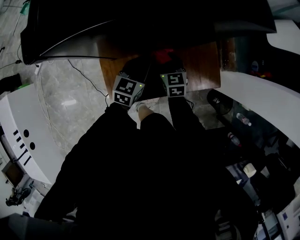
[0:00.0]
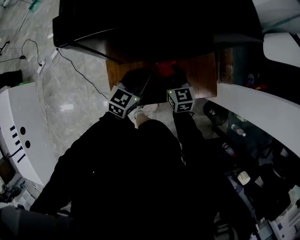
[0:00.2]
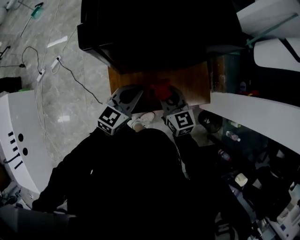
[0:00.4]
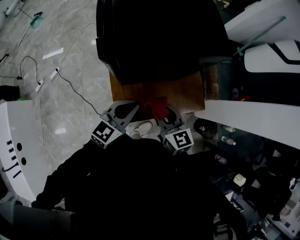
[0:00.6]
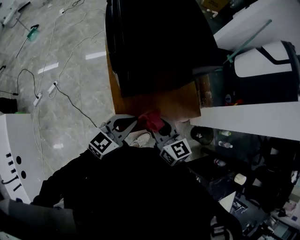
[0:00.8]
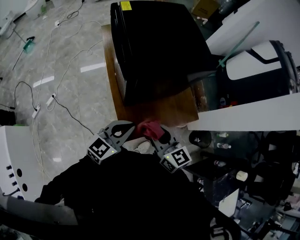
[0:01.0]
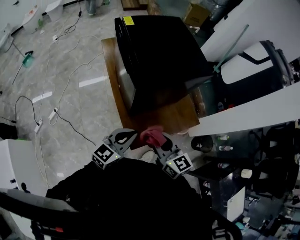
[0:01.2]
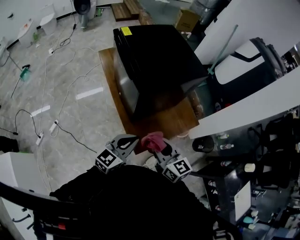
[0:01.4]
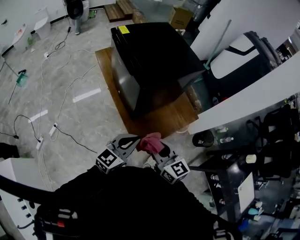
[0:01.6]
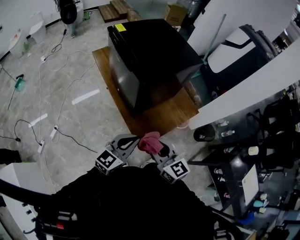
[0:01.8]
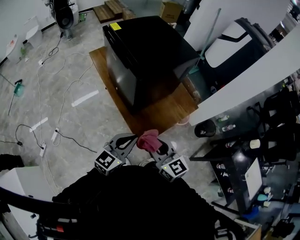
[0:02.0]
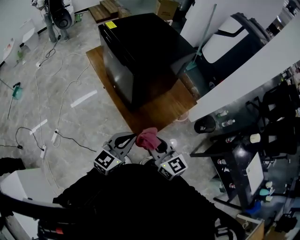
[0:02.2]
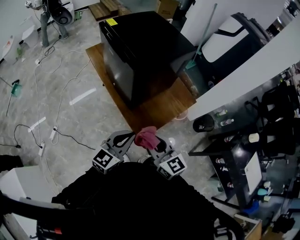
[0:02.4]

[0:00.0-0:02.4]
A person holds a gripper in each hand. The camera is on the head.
0:00.0 to 0:01.2: Both grippers move upward, backward and to the left, about 40 cm. The left gripper turns by approximately 30 degrees. The right gripper turns by about 20 degrees.
0:01.2 to 0:02.4: Both grippers travel together backward, approximately 10 cm.

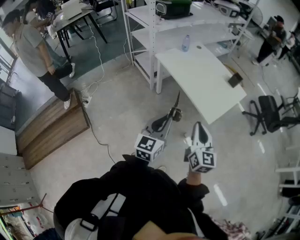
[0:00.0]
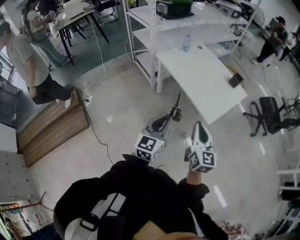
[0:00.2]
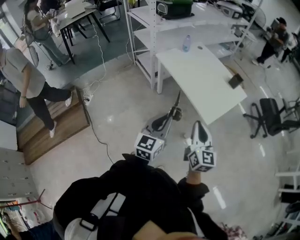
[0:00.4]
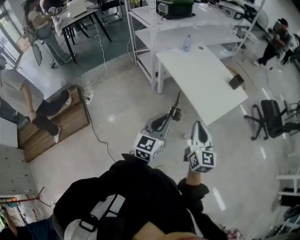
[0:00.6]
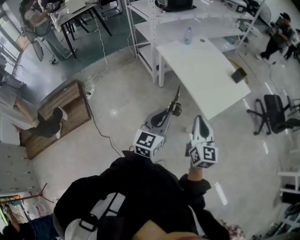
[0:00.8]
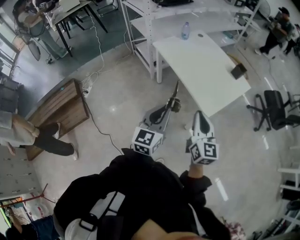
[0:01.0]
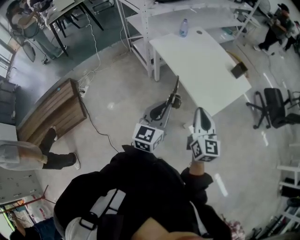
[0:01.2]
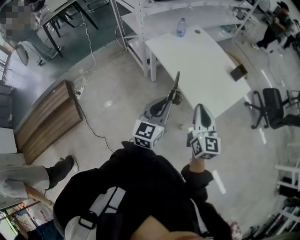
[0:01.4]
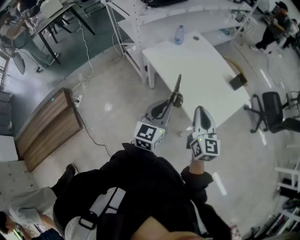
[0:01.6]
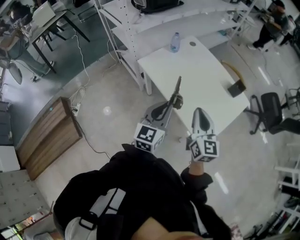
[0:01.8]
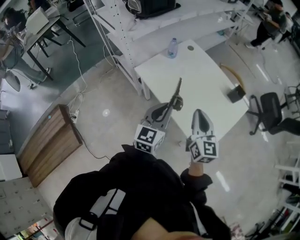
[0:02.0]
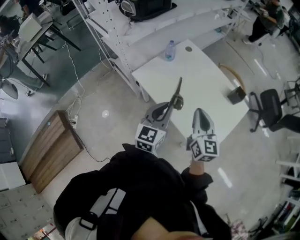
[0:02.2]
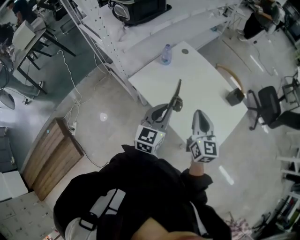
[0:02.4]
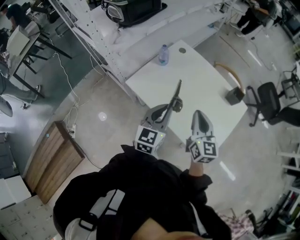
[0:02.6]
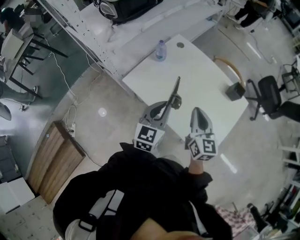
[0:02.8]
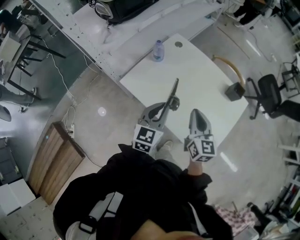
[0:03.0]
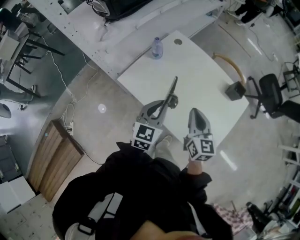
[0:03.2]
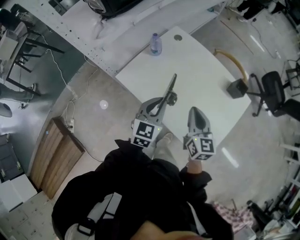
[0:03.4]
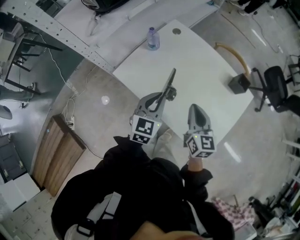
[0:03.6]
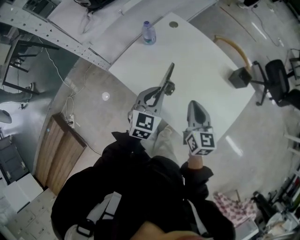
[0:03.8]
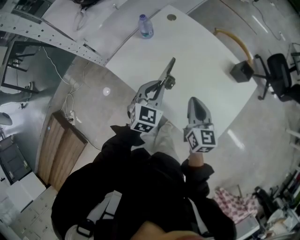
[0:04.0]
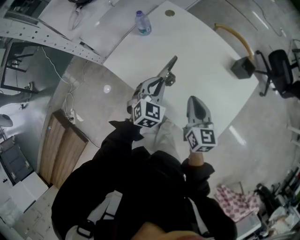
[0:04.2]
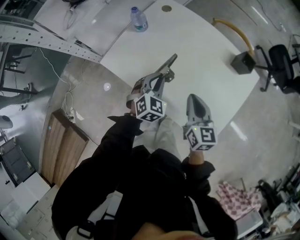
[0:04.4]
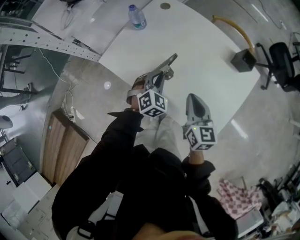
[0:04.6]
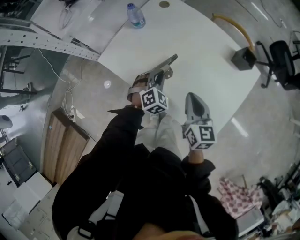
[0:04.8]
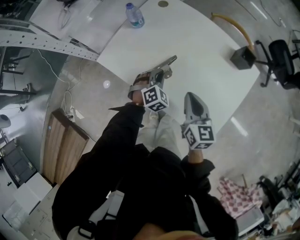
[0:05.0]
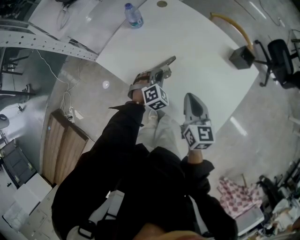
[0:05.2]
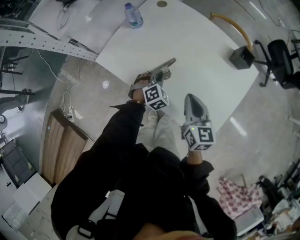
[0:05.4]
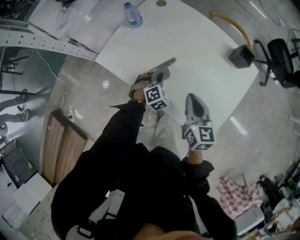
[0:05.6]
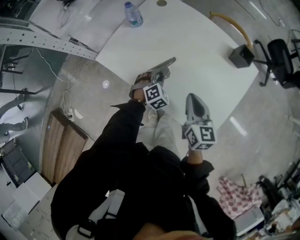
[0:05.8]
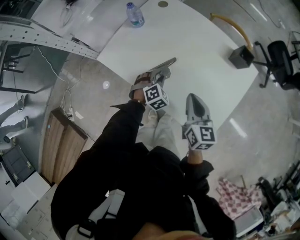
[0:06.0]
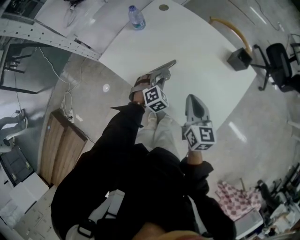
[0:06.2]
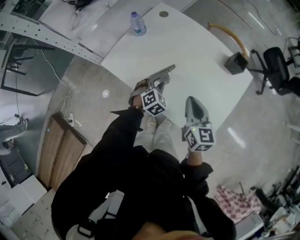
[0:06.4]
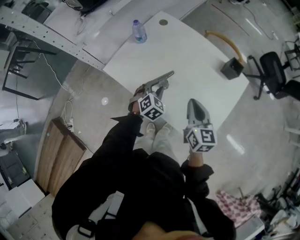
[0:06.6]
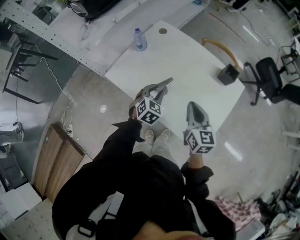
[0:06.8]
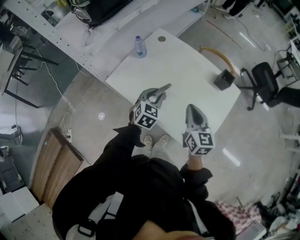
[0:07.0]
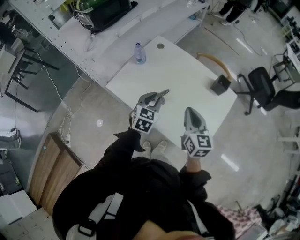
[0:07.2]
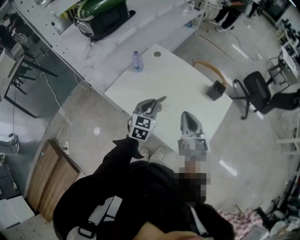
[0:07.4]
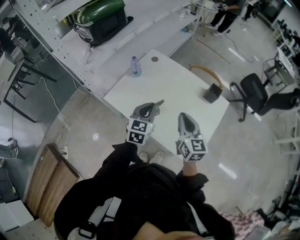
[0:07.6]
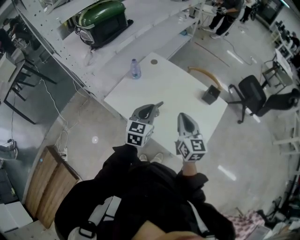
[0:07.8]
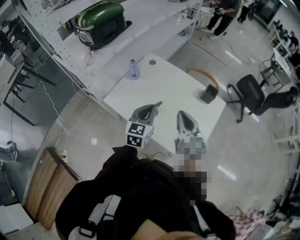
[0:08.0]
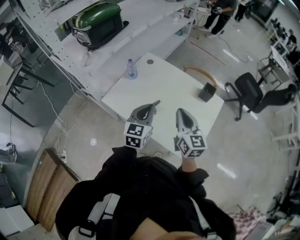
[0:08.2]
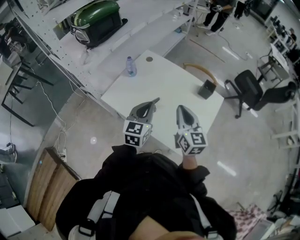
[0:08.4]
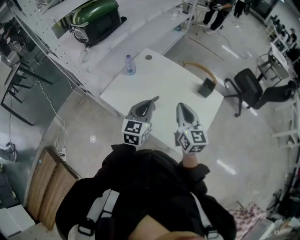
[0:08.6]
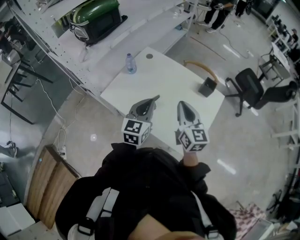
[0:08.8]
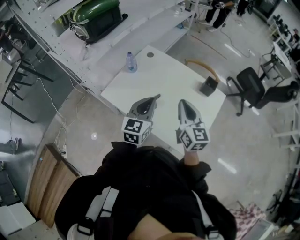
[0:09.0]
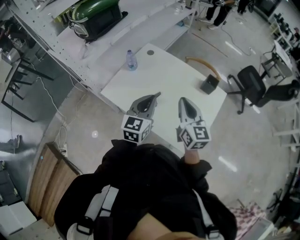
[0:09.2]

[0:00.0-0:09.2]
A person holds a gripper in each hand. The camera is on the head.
0:00.0 to 0:01.6: The two grippers go approximately 25 cm forward.
0:01.6 to 0:03.0: The two grippers go approximately 25 cm forward.
0:03.0 to 0:04.6: The left gripper travels downward and forward by approximately 20 cm, and turns by approximately 50 degrees; the right gripper heads downward and to the right, covering about 15 cm.
0:04.6 to 0:06.2: The left gripper is displaced downward by approximately 5 cm.
0:06.2 to 0:07.6: The left gripper is displaced upward by some 25 cm, points its fingers some 30 degrees further upward, and closes its fingers; the right gripper moves upward, roughly 15 cm.
0:07.6 to 0:09.2: The left gripper heads upward, covering about 5 cm.

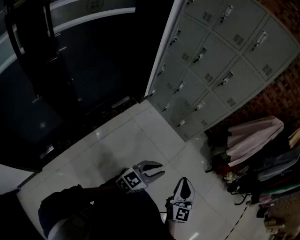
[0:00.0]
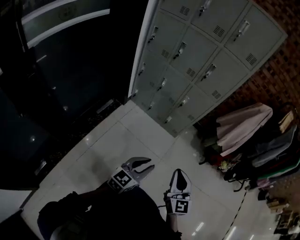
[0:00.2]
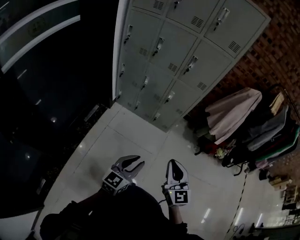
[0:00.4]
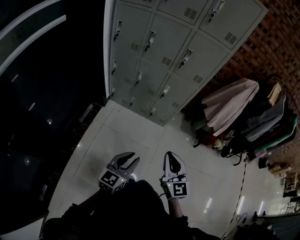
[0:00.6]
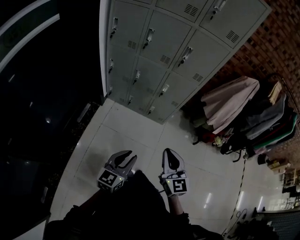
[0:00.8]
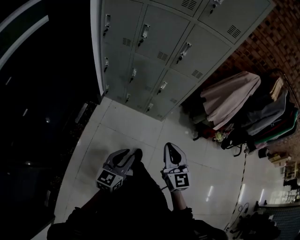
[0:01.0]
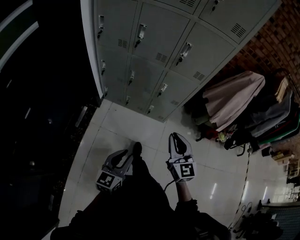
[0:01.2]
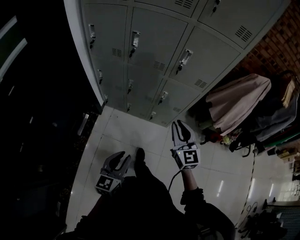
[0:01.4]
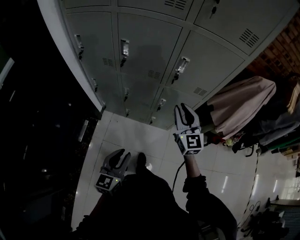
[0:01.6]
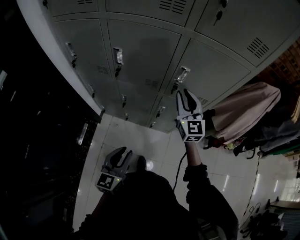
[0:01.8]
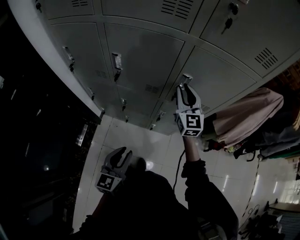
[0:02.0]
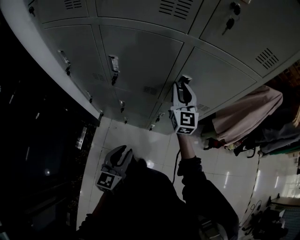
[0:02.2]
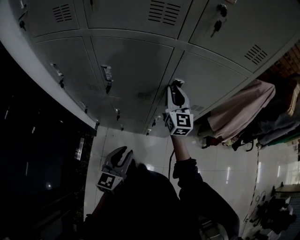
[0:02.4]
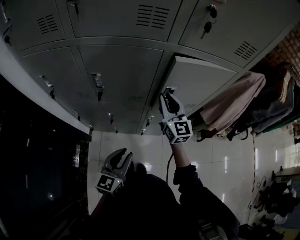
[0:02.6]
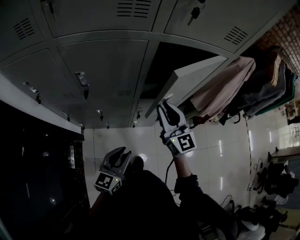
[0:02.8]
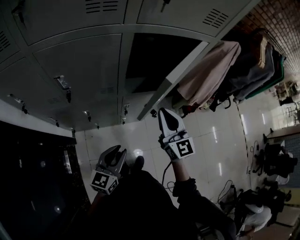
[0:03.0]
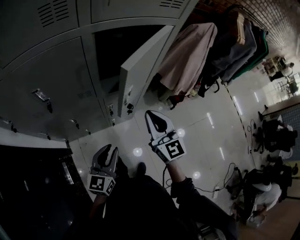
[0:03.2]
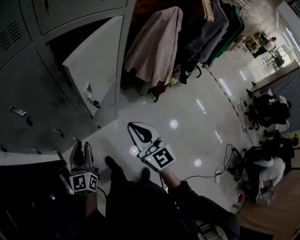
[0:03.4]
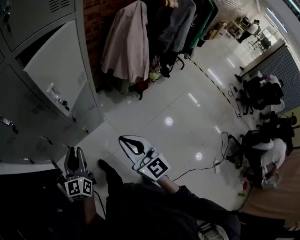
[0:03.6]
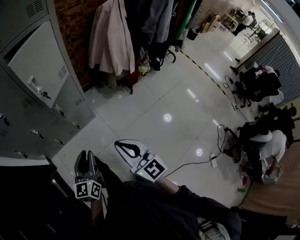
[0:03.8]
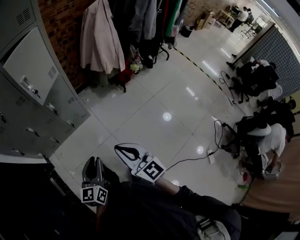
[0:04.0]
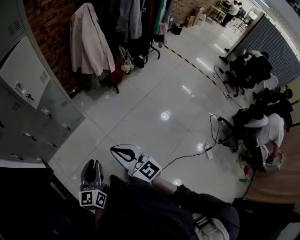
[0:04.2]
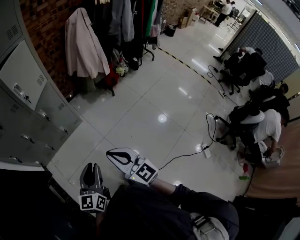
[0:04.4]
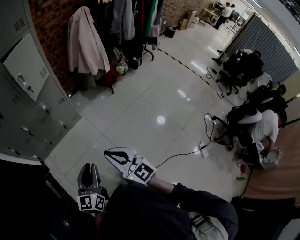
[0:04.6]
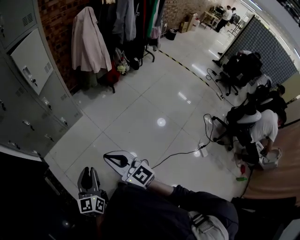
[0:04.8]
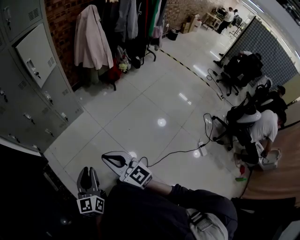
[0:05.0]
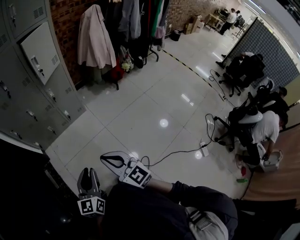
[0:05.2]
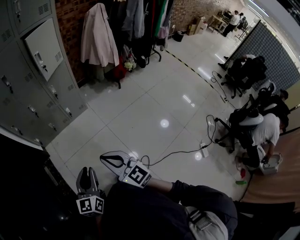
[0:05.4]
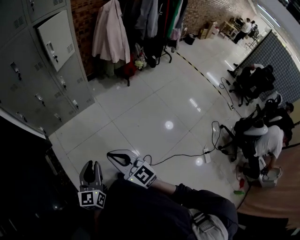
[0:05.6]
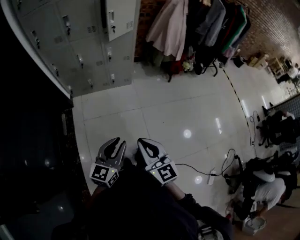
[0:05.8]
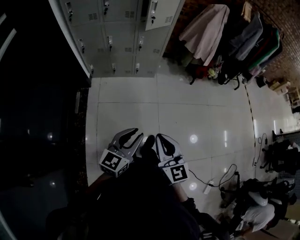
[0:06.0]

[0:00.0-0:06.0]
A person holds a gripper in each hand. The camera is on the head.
0:00.0 to 0:01.6: Both grippers are carried forward, approximately 50 cm.
0:01.6 to 0:03.0: The left gripper travels forward by approximately 15 cm, and rotates some 30 degrees, while the right gripper travels forward and back again, about 20 cm each way.
0:03.0 to 0:04.4: Both grippers are carried backward and to the right, some 50 cm.
0:04.4 to 0:06.0: The two grippers go some 15 cm to the left and backward.

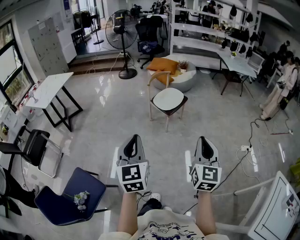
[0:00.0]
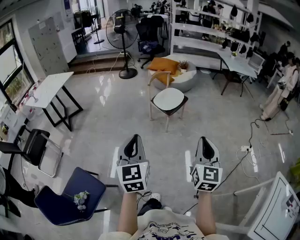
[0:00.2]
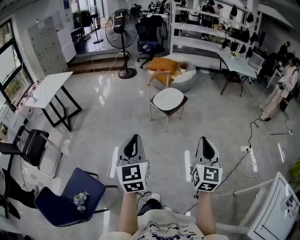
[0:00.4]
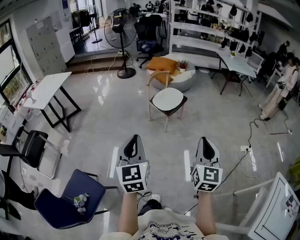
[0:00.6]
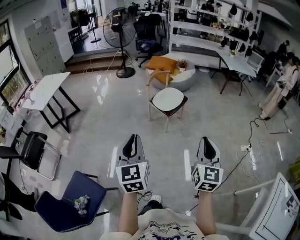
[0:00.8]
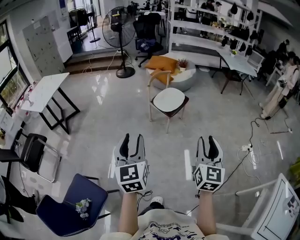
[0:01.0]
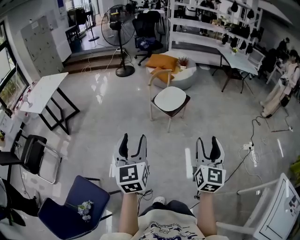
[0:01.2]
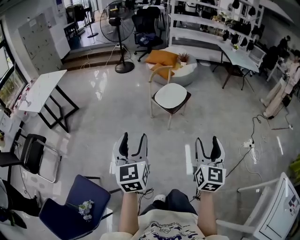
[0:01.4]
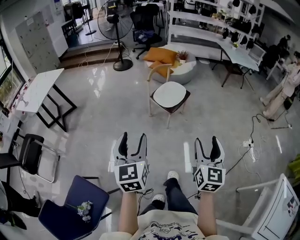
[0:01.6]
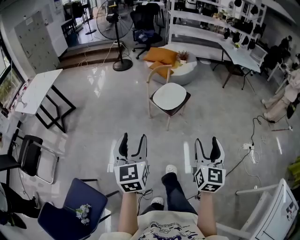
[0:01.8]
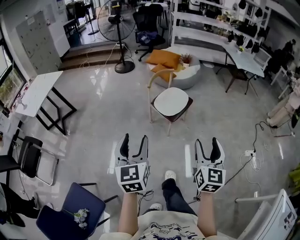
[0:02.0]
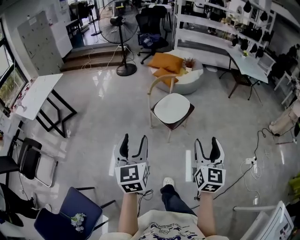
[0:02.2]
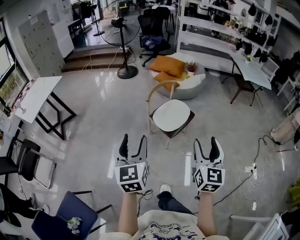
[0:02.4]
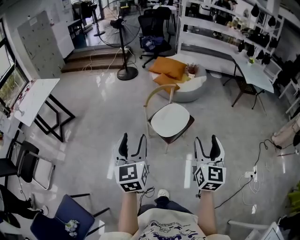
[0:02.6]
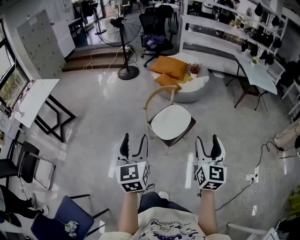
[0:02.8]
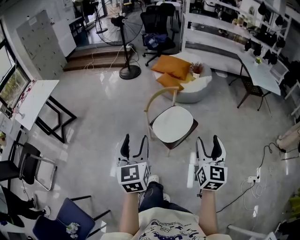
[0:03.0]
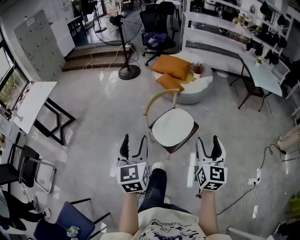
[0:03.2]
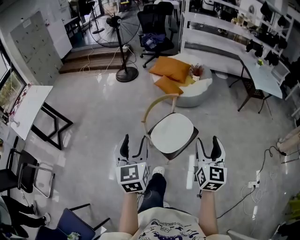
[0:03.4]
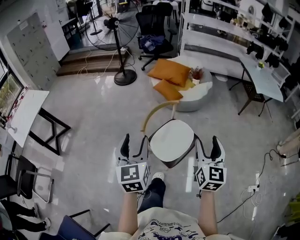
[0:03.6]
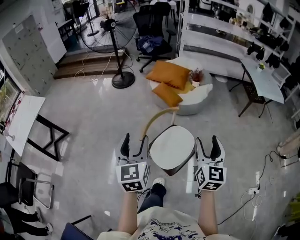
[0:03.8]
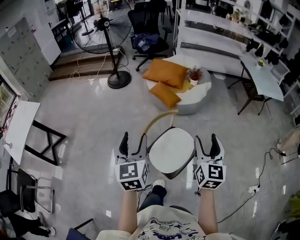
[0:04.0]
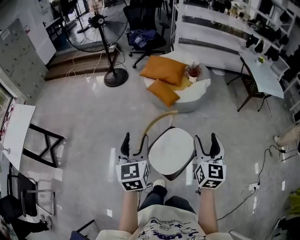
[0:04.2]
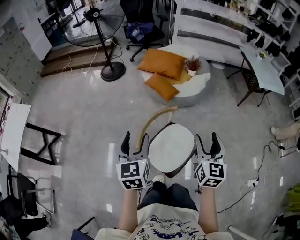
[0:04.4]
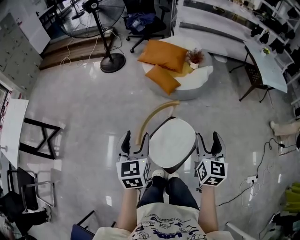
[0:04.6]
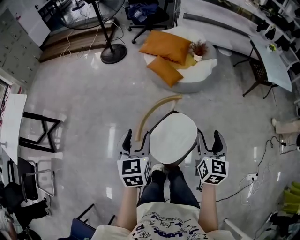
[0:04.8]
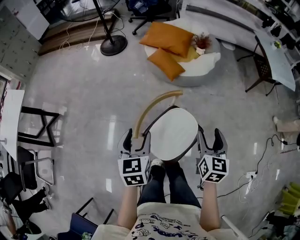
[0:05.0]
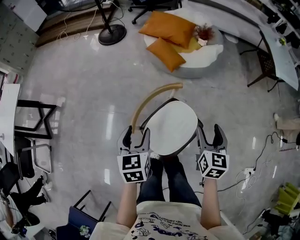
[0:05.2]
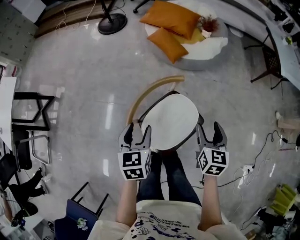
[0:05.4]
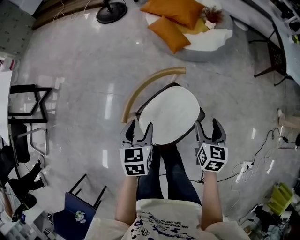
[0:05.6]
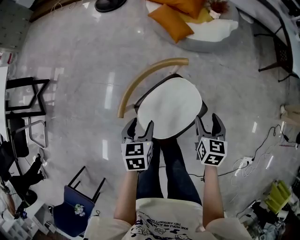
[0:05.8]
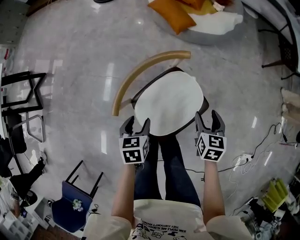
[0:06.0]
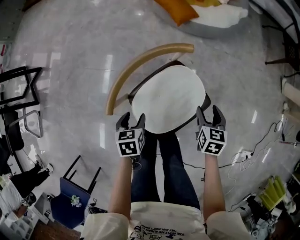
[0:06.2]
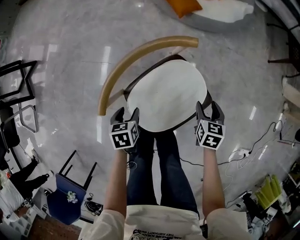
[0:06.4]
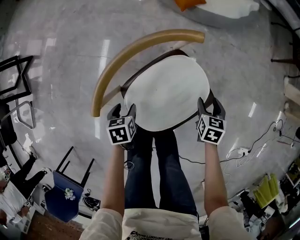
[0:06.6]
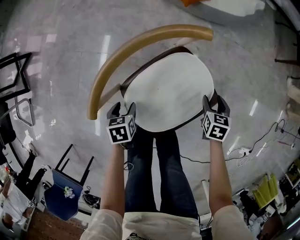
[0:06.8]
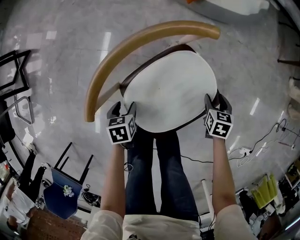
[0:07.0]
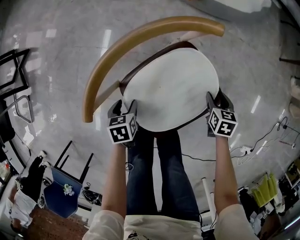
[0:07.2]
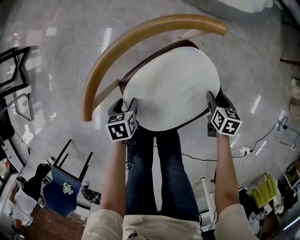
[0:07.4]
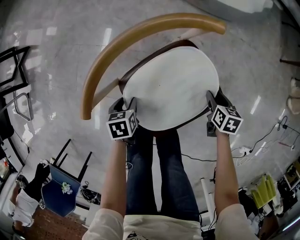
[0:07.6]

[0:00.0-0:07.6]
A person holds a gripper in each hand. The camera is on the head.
0:00.0 to 0:01.6: Both grippers travel together forward and to the left, approximately 15 cm. The left gripper opens up. Meanwhile the right gripper opens up.
0:01.6 to 0:03.0: Both grippers are carried forward, approximately 50 cm.
0:03.0 to 0:04.6: The pair of grippers is taken forward, approximately 50 cm.
0:04.6 to 0:06.0: Both grippers travel together downward, approximately 35 cm. The left gripper tips its fingers downward by roughly 30 degrees. Meanwhile the right gripper tilts its fingers approximately 30 degrees downward.
0:06.0 to 0:07.6: The two grippers go roughly 25 cm downward. The right gripper rotates approximately 20 degrees.
